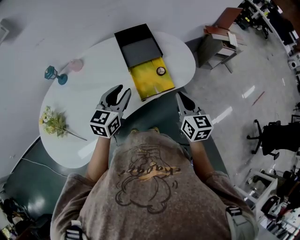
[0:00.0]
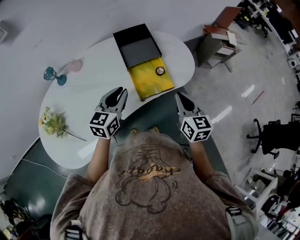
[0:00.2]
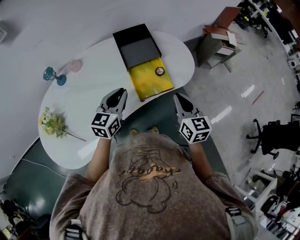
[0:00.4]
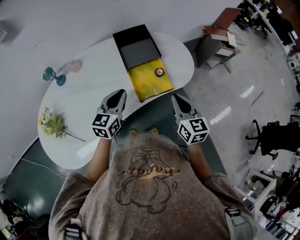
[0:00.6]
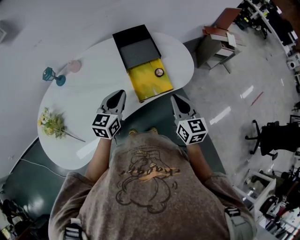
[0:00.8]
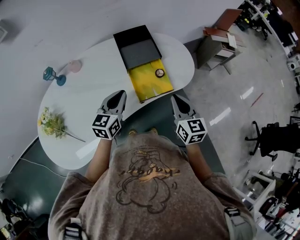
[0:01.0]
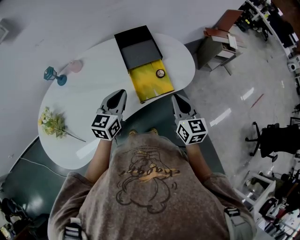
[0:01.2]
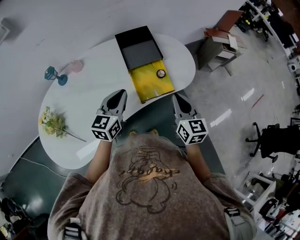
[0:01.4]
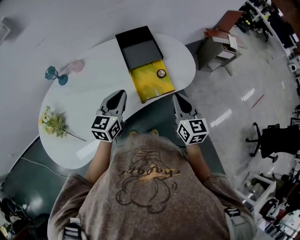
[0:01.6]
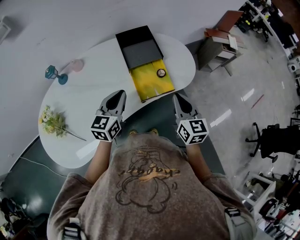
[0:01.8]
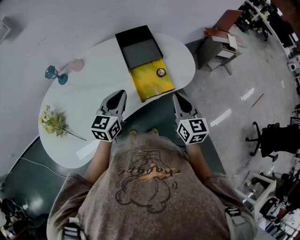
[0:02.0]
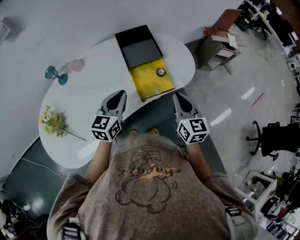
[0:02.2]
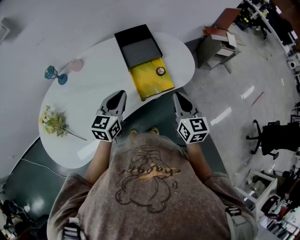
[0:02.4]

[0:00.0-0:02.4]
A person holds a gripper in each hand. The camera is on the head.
0.0 to 1.2 s: The left gripper closes up.
1.2 to 2.4 s: The grippers stay close to where they were, moving slightly.

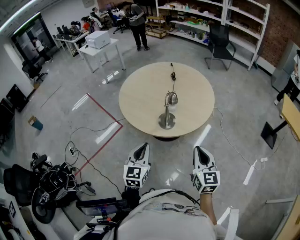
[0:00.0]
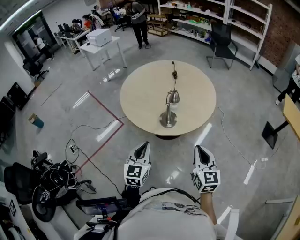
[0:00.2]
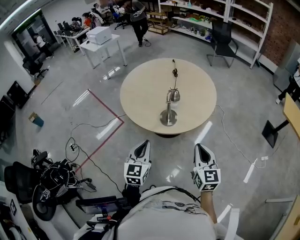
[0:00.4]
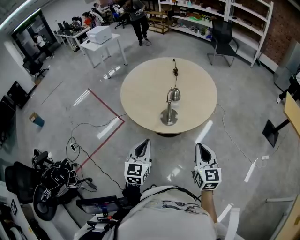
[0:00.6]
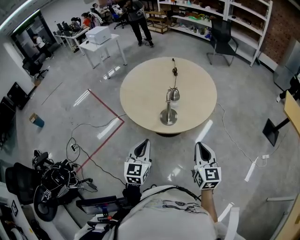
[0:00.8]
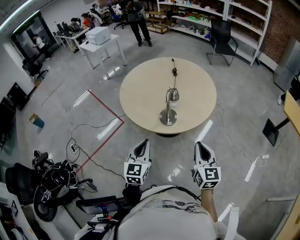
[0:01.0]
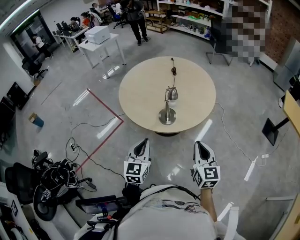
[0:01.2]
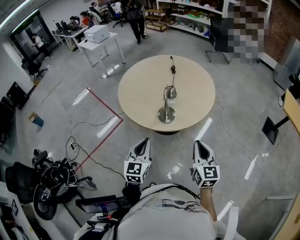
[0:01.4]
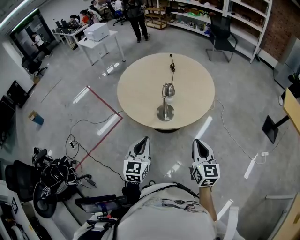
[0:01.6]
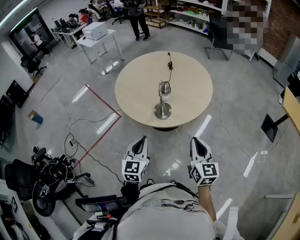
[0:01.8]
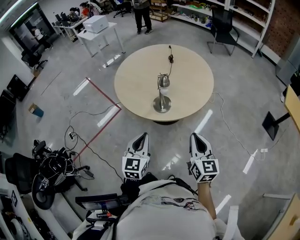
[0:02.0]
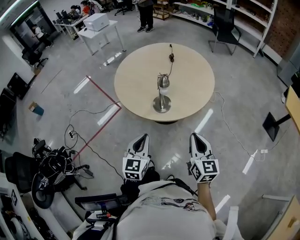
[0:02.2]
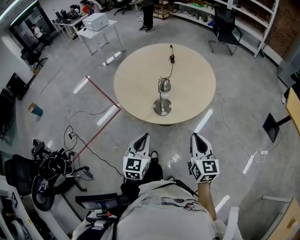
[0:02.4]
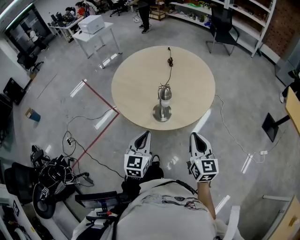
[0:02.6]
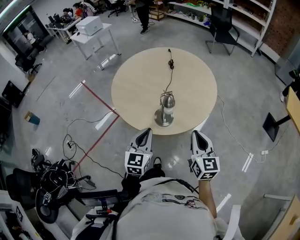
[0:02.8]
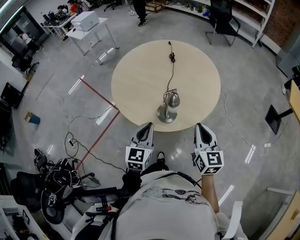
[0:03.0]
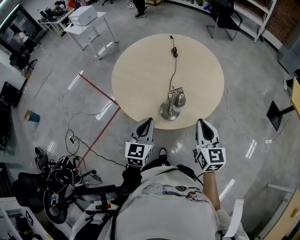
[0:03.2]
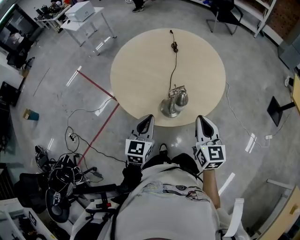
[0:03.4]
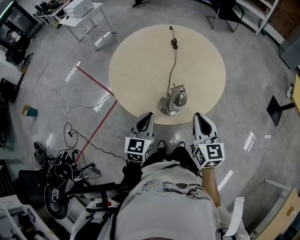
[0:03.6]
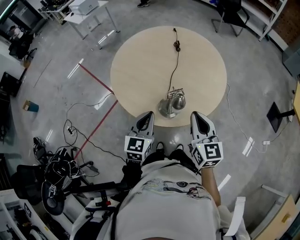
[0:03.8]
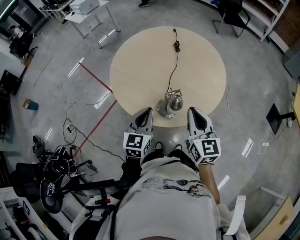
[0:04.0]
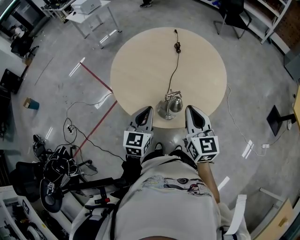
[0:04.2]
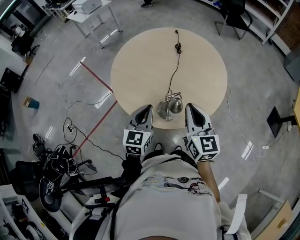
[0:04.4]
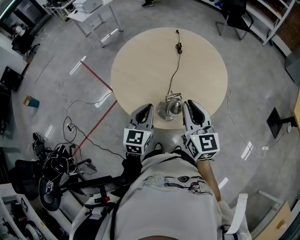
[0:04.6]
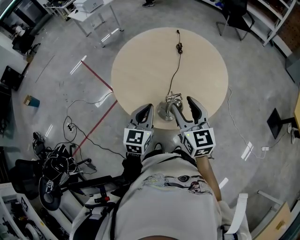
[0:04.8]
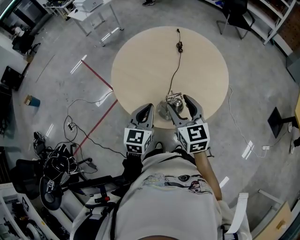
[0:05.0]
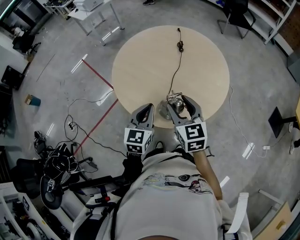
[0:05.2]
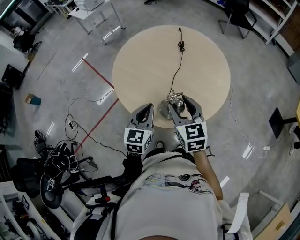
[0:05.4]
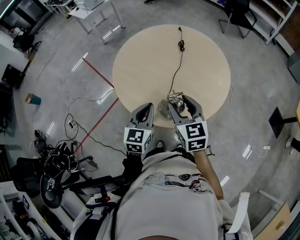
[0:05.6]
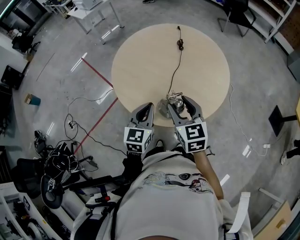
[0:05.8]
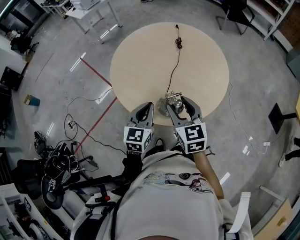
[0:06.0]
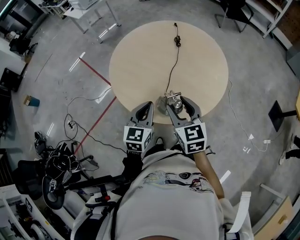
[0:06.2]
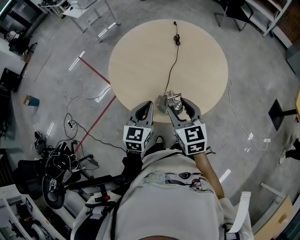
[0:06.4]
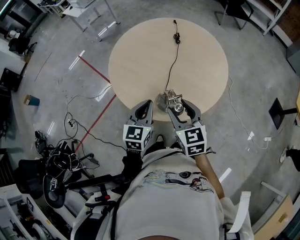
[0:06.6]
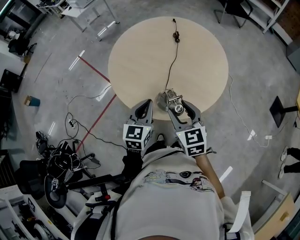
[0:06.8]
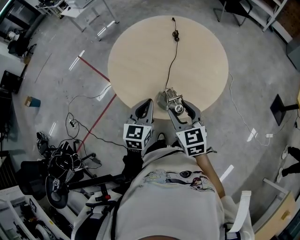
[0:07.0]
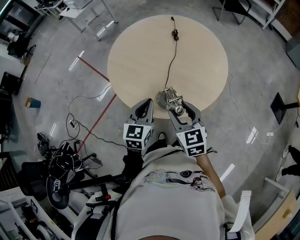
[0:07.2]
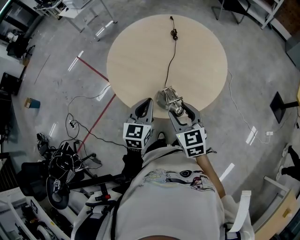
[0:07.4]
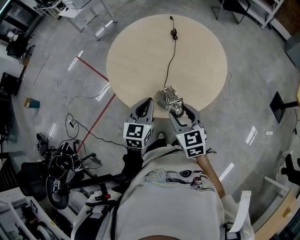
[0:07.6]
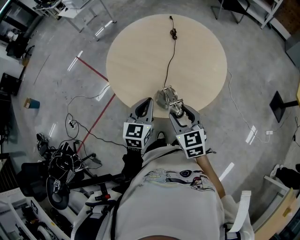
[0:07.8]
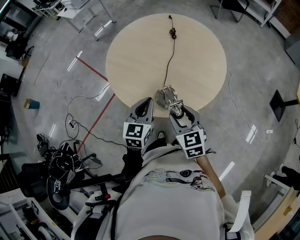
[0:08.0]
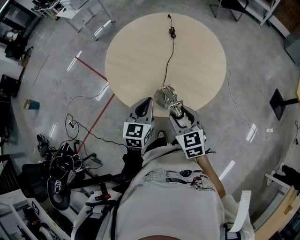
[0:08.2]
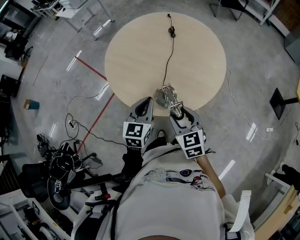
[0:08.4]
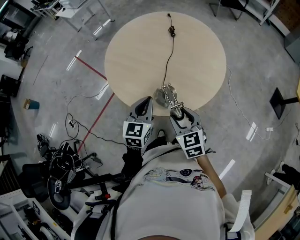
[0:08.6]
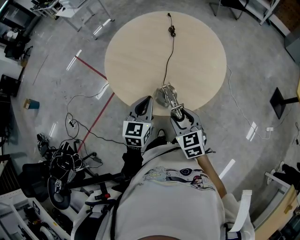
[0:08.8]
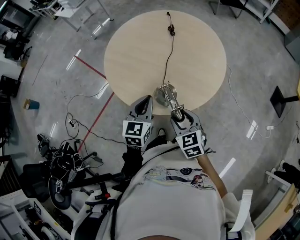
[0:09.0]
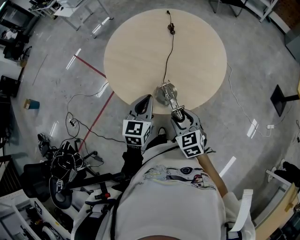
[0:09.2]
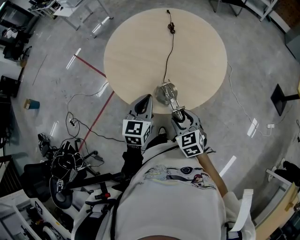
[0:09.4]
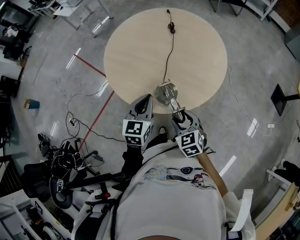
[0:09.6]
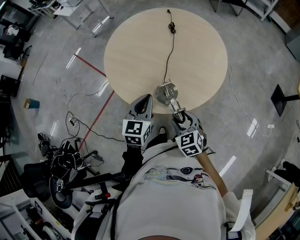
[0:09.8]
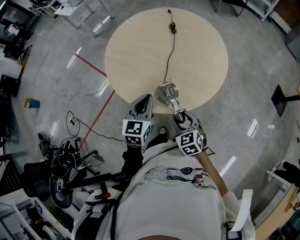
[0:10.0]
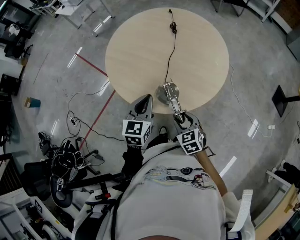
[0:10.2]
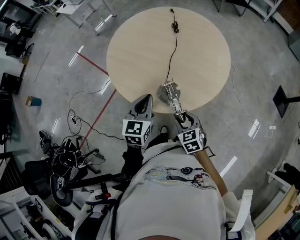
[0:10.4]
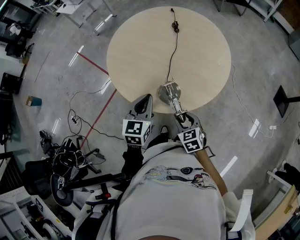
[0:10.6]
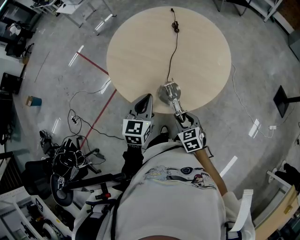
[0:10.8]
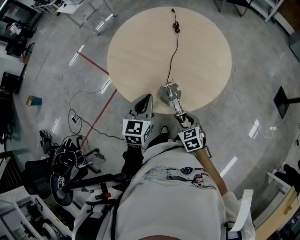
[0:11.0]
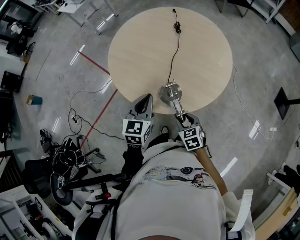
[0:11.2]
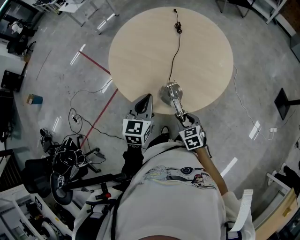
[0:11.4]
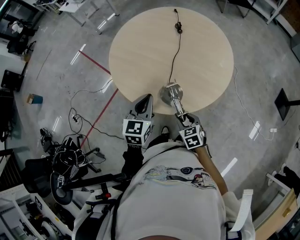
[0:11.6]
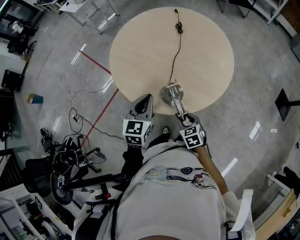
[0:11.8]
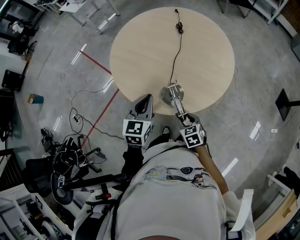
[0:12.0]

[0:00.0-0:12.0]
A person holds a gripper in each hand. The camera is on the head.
0.0 to 1.6 s: There are only small adjustments of the grippers.
1.6 to 3.0 s: The two grippers go some 15 cm forward.
3.0 to 4.4 s: The right gripper is displaced forward and to the left by approximately 10 cm. The left gripper heads forward, covering about 10 cm.
4.4 to 6.0 s: The right gripper is displaced to the left by some 5 cm, and opens up.
6.0 to 7.6 s: The right gripper travels downward and backward by some 10 cm.
7.6 to 9.0 s: The right gripper shifts some 5 cm downward.
9.0 to 10.4 s: The right gripper goes roughly 10 cm downward.
10.4 to 12.0 s: The right gripper shifts some 5 cm downward.

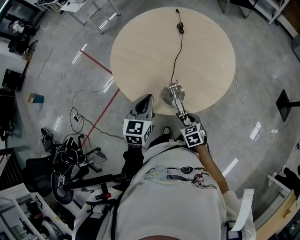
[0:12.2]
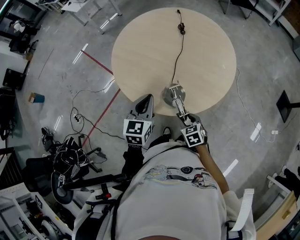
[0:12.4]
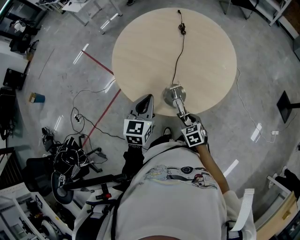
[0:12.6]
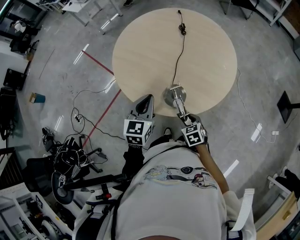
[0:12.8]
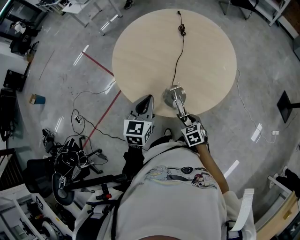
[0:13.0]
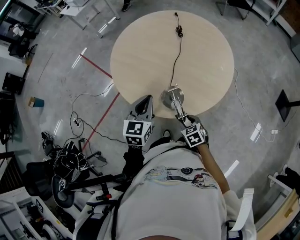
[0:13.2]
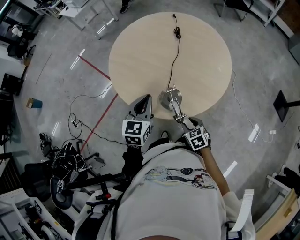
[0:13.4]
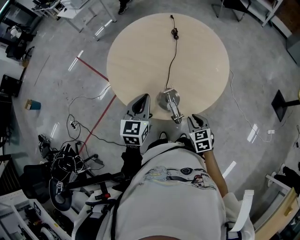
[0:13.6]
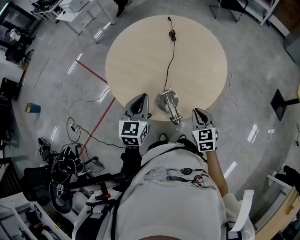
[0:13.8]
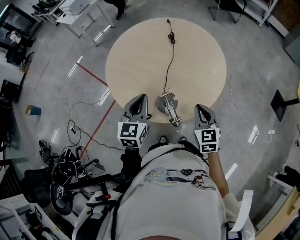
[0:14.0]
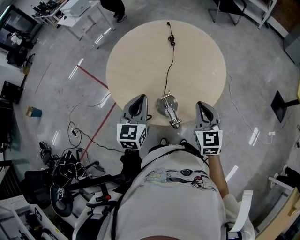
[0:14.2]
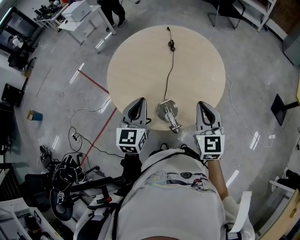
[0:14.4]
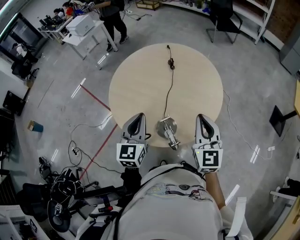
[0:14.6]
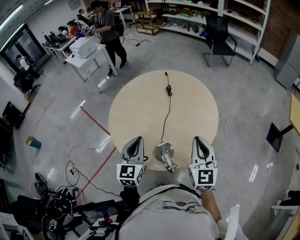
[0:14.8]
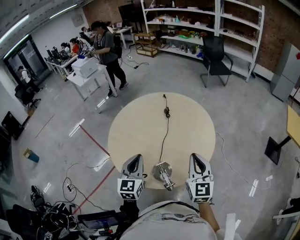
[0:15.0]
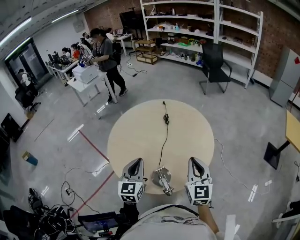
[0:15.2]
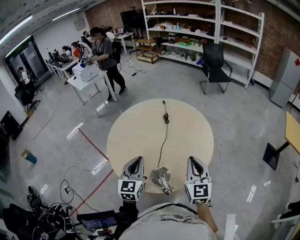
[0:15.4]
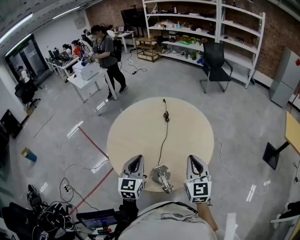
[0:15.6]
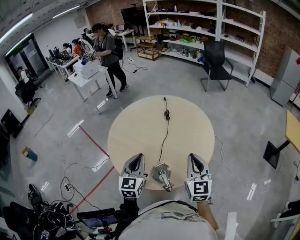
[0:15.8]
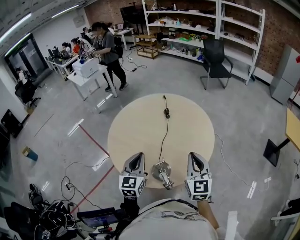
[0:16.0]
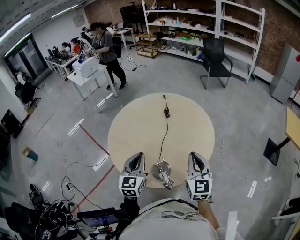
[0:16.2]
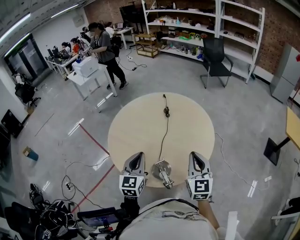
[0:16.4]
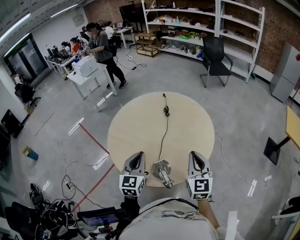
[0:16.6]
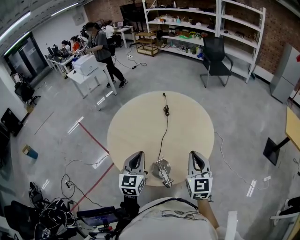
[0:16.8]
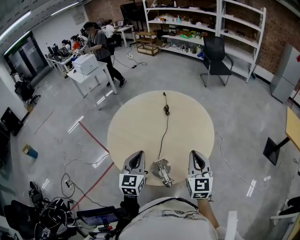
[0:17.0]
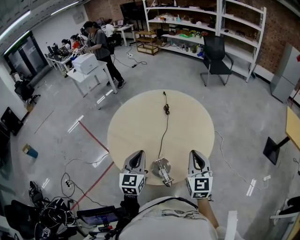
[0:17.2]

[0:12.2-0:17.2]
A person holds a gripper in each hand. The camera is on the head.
12.2 to 13.8 s: The right gripper is displaced upward and to the right by about 15 cm, changes its angle by about 20 degrees, and closes.
13.8 to 15.6 s: The left gripper shifts approximately 5 cm upward. Meanwhile the right gripper is displaced upward by approximately 20 cm, and rotates approximately 30 degrees.
15.6 to 17.2 s: Both grippers stay put.

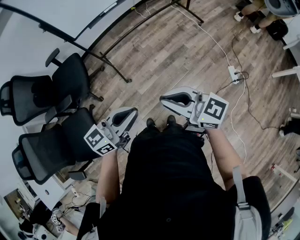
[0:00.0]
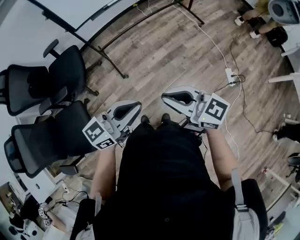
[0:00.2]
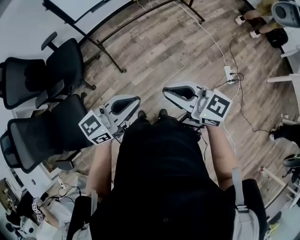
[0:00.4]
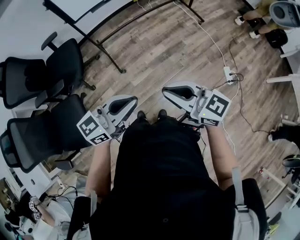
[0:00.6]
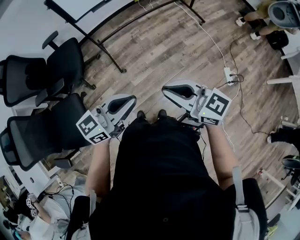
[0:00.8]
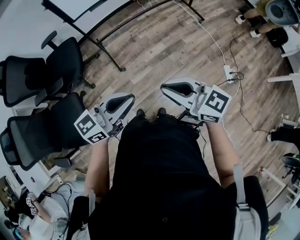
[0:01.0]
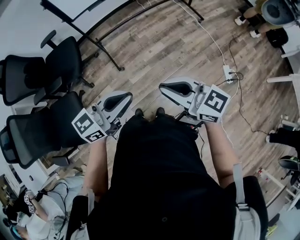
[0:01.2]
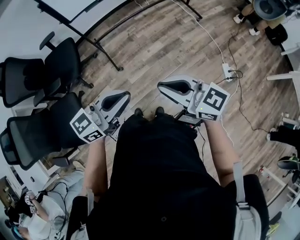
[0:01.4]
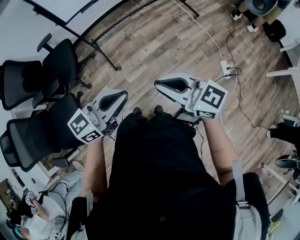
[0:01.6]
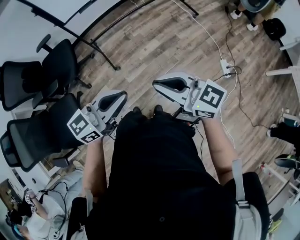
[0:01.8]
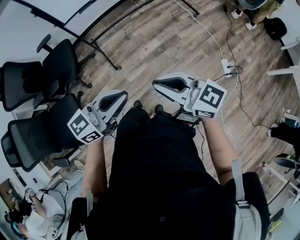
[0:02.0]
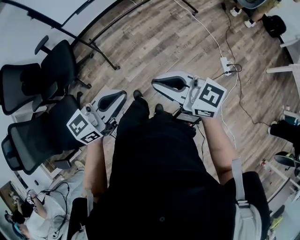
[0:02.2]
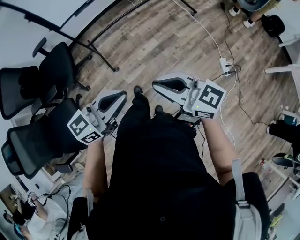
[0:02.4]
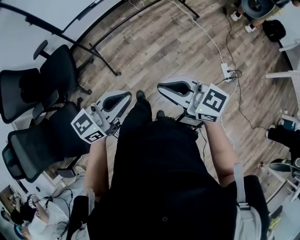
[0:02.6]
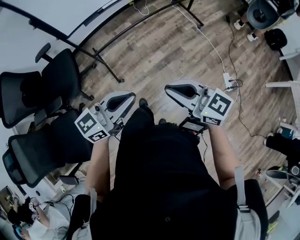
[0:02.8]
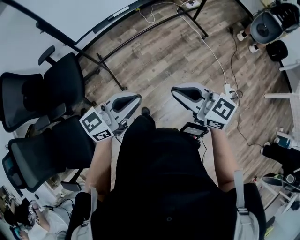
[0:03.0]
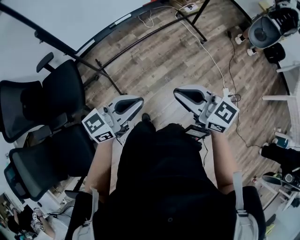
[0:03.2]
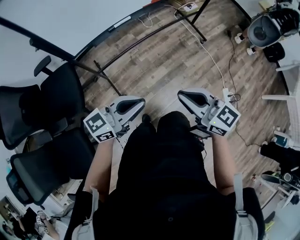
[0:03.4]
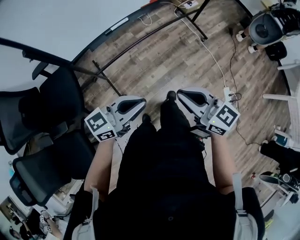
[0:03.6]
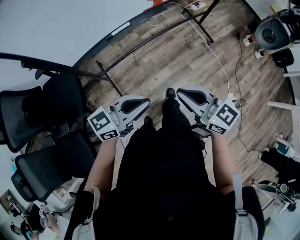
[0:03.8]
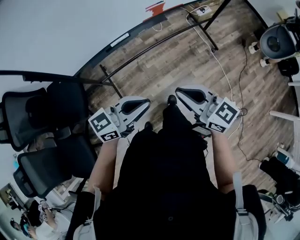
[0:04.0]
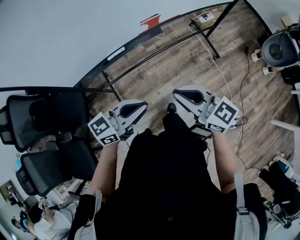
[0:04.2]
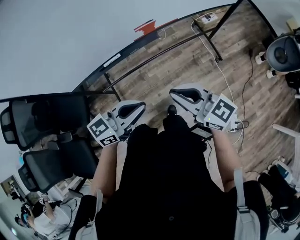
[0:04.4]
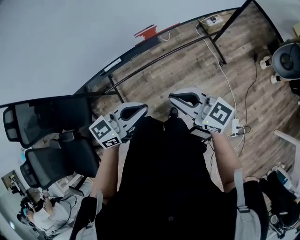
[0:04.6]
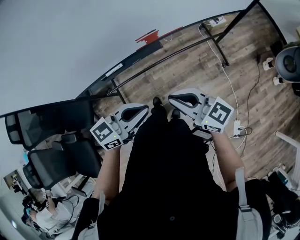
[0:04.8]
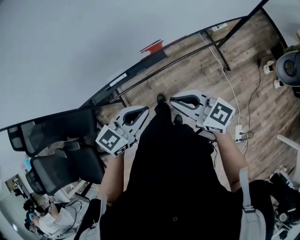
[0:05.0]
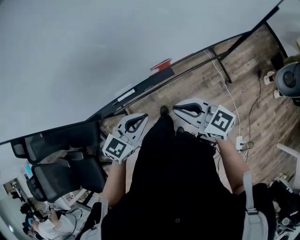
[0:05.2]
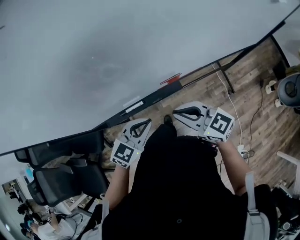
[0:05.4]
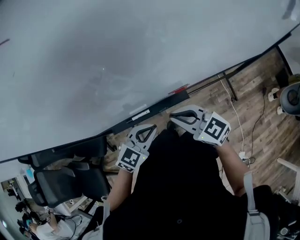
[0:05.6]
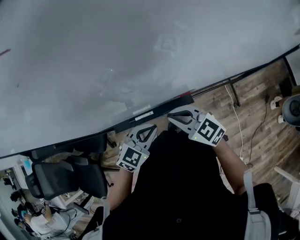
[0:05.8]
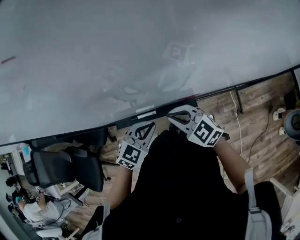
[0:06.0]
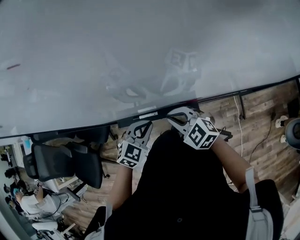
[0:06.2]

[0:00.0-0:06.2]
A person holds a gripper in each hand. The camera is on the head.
0.0 to 1.6 s: The grippers stay close to where they were, moving slightly.
1.6 to 3.2 s: The grippers both shift forward by approximately 25 cm.
3.2 to 4.6 s: The left gripper shifts roughly 30 cm forward and to the right; the right gripper is displaced forward by some 30 cm.
4.6 to 6.2 s: The right gripper moves about 25 cm, and rotates about 40 degrees. Meanwhile the left gripper moves approximately 25 cm, and points its fingers some 30 degrees further downward.
